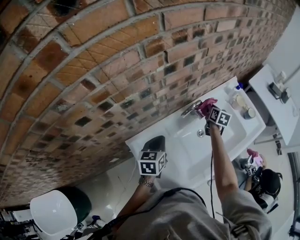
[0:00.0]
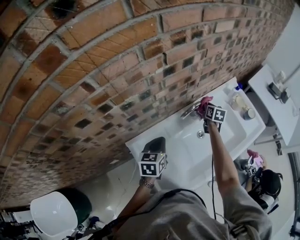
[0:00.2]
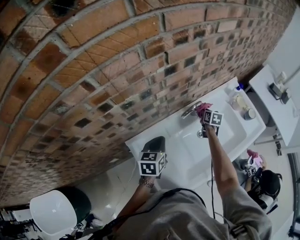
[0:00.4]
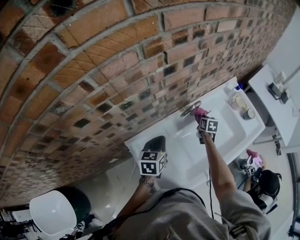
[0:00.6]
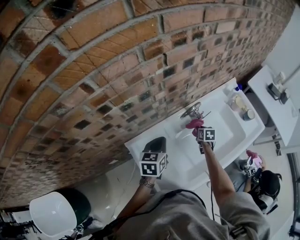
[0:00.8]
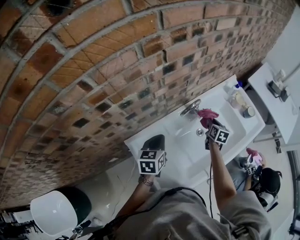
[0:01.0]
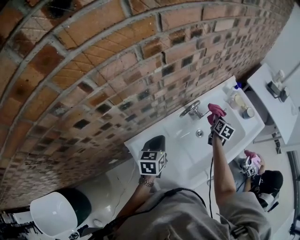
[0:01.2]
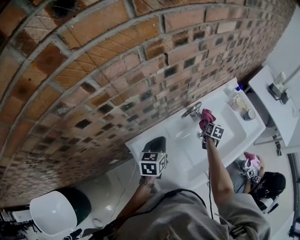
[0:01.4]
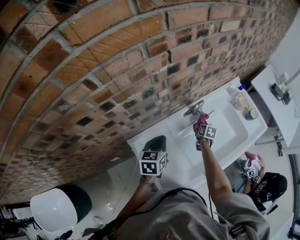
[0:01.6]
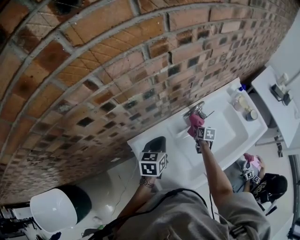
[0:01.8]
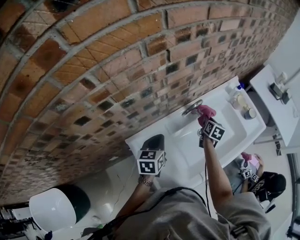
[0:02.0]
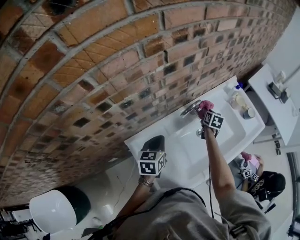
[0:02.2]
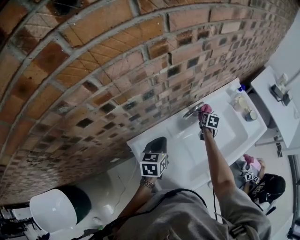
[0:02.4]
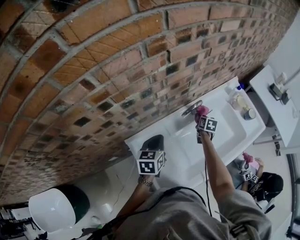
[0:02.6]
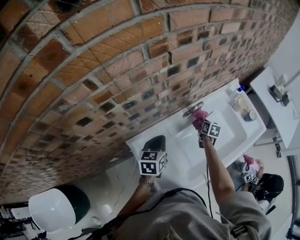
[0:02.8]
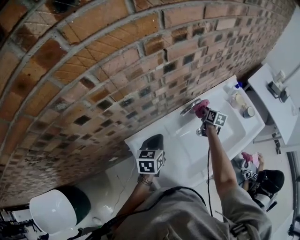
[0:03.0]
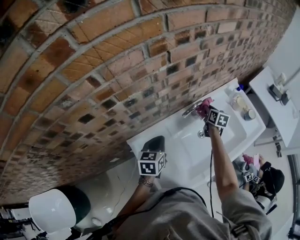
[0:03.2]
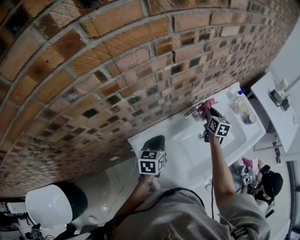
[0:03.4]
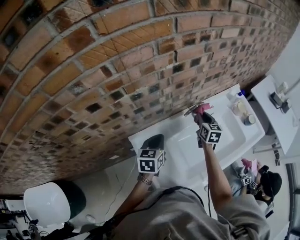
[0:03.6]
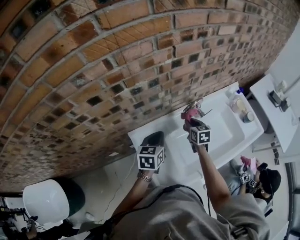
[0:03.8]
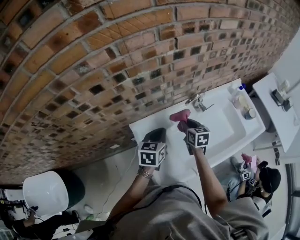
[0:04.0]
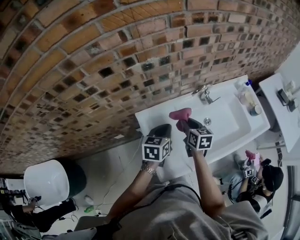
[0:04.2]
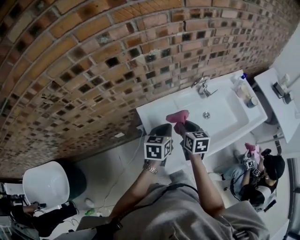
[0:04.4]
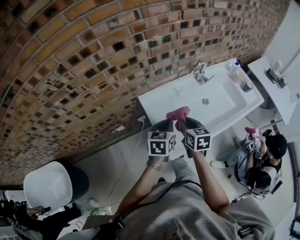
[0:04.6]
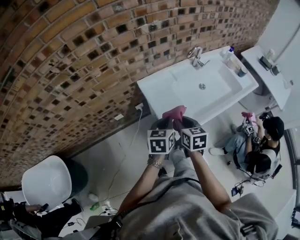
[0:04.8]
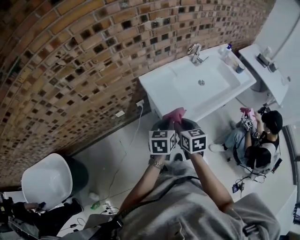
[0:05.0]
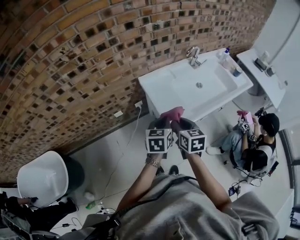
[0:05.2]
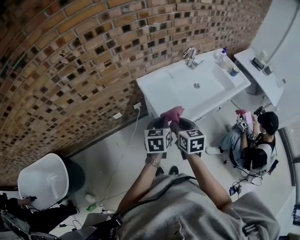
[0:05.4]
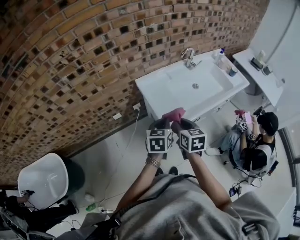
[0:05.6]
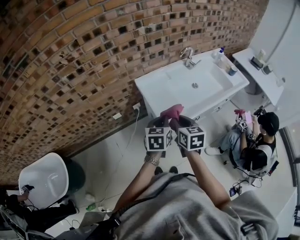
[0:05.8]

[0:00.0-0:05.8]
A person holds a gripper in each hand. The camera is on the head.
0:00.0 to 0:01.4: The right gripper goes up and down, approximately 10 cm each way, reversing 2 times.
0:01.4 to 0:02.8: The right gripper goes up and down, some 10 cm each way, reversing 2 times.
0:02.8 to 0:04.4: The left gripper travels backward by approximately 15 cm. The right gripper moves backward, to the left and upward, approximately 35 cm, and rotates about 30 degrees.
0:04.4 to 0:05.8: The grippers both shift backward by approximately 25 cm.

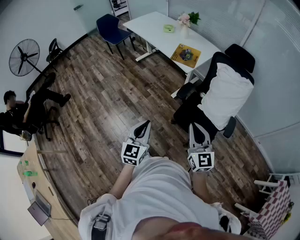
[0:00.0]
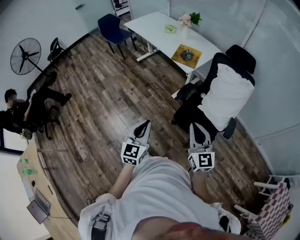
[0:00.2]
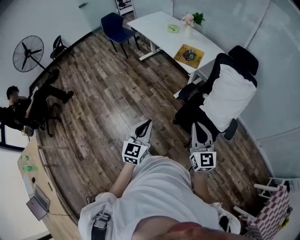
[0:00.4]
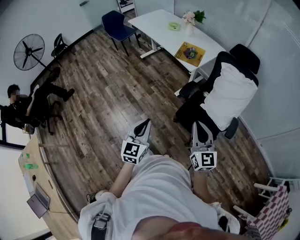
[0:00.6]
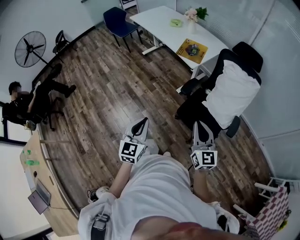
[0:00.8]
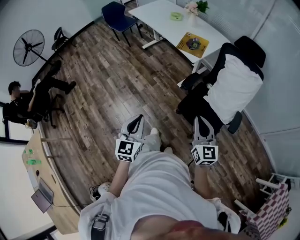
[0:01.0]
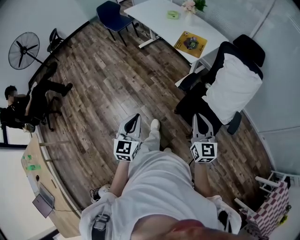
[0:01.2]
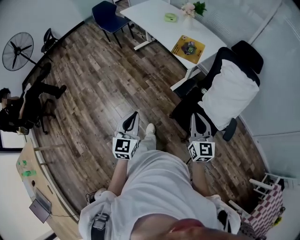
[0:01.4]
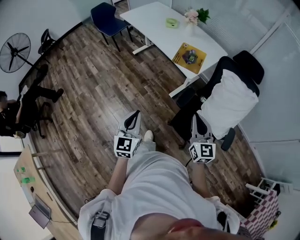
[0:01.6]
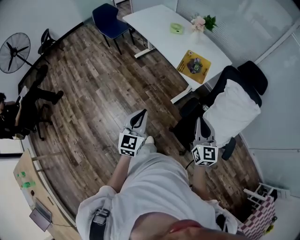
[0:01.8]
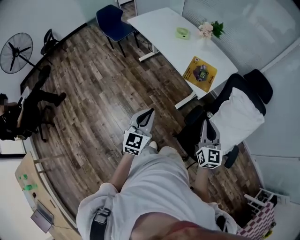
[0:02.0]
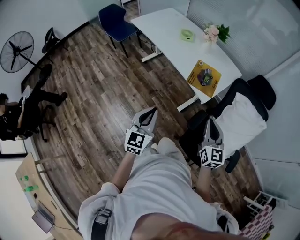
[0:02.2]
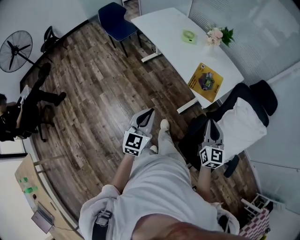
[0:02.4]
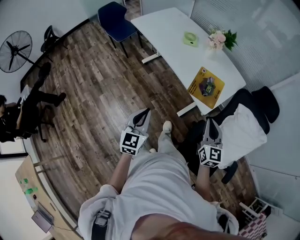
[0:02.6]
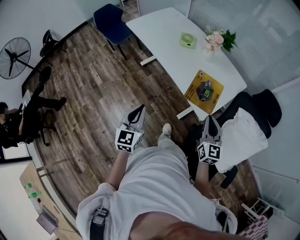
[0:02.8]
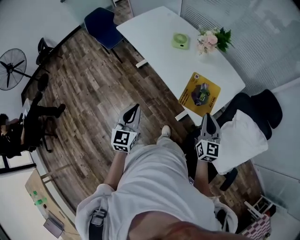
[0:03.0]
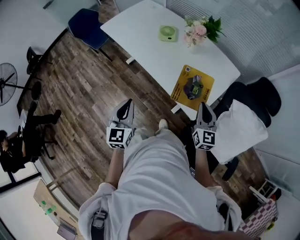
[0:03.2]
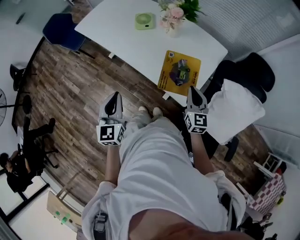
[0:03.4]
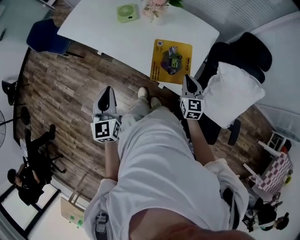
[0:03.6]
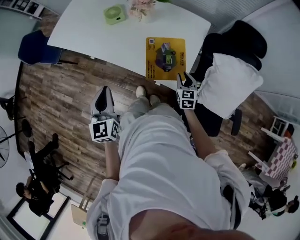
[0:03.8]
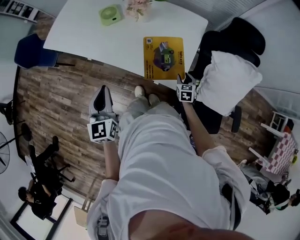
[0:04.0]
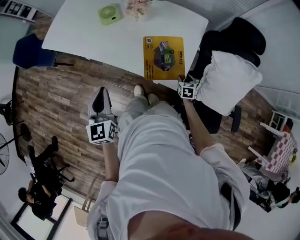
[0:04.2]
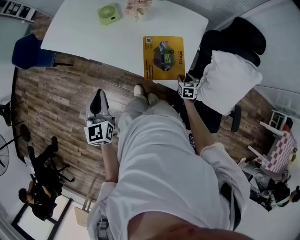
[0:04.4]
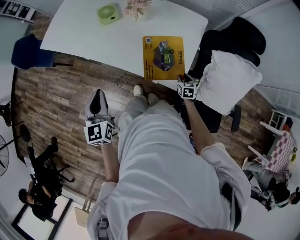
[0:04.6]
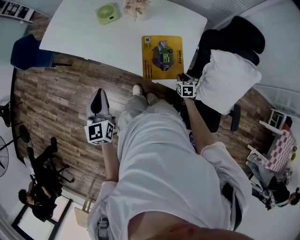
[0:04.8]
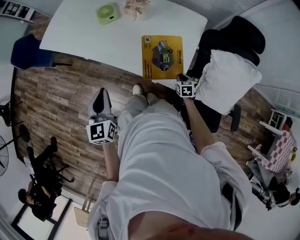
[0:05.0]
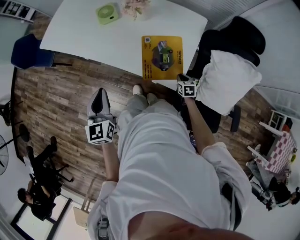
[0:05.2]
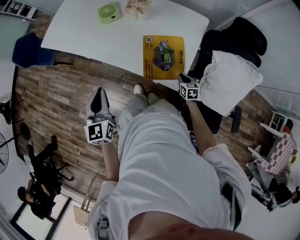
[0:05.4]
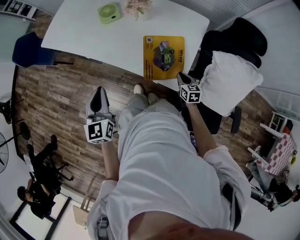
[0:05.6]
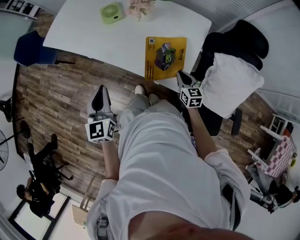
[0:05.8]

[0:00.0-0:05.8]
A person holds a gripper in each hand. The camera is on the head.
0:00.0 to 0:01.4: The two grippers go approximately 10 cm forward.
0:01.4 to 0:02.8: Both grippers are carried forward, some 40 cm.
0:02.8 to 0:04.4: The left gripper moves forward, roughly 20 cm. The right gripper travels downward by about 35 cm, points its fingers roughly 40 degrees further downward, and opens.
0:04.4 to 0:05.8: The right gripper goes approximately 15 cm upward and to the left, swivels about 20 degrees, and closes its fingers.

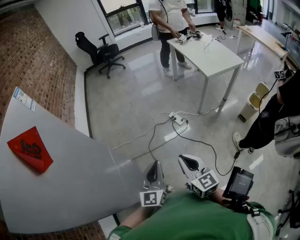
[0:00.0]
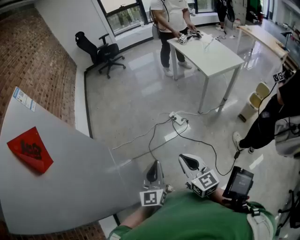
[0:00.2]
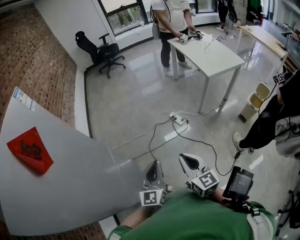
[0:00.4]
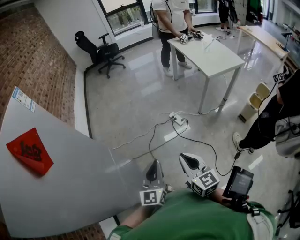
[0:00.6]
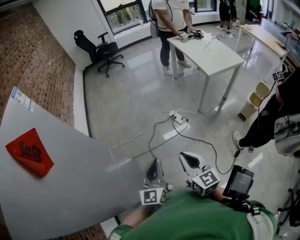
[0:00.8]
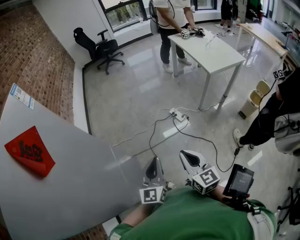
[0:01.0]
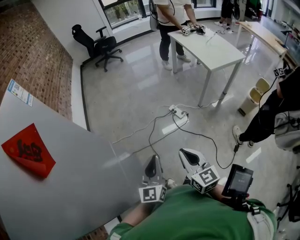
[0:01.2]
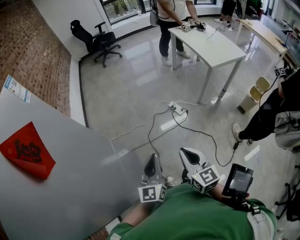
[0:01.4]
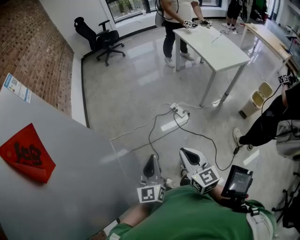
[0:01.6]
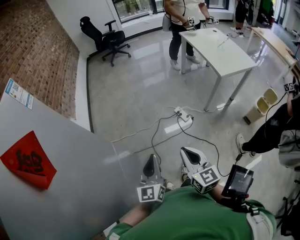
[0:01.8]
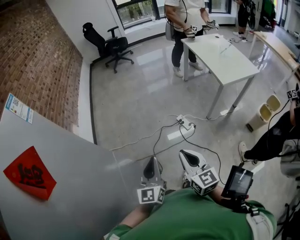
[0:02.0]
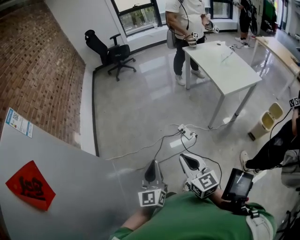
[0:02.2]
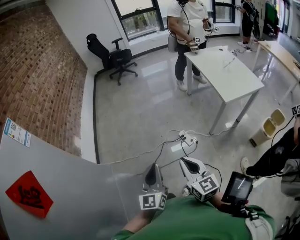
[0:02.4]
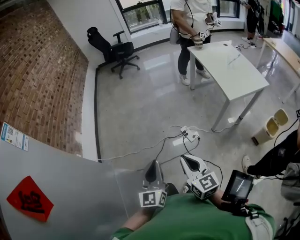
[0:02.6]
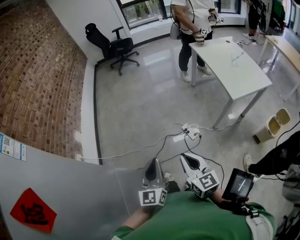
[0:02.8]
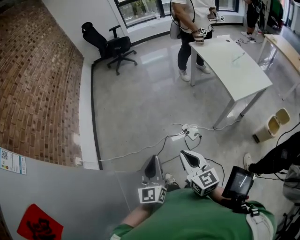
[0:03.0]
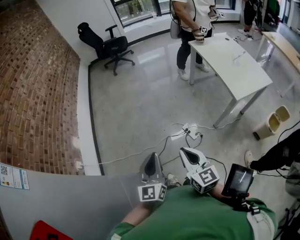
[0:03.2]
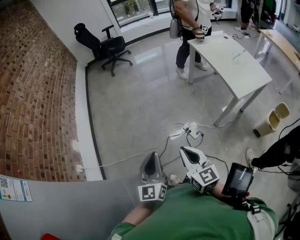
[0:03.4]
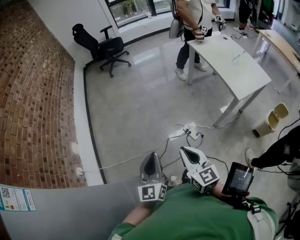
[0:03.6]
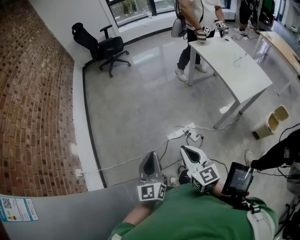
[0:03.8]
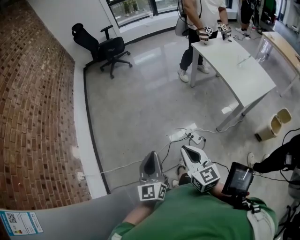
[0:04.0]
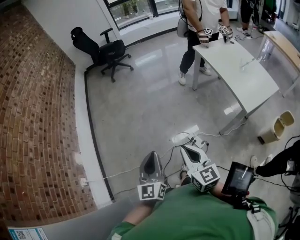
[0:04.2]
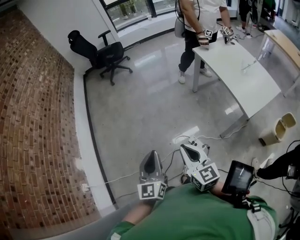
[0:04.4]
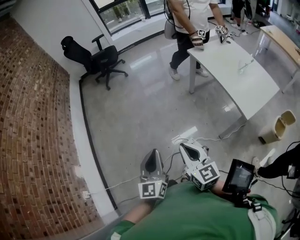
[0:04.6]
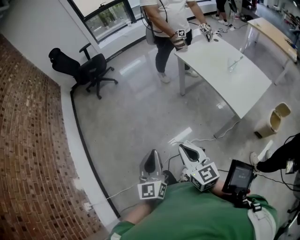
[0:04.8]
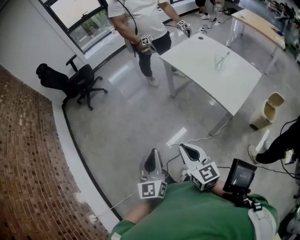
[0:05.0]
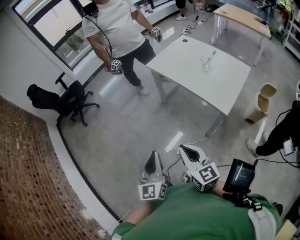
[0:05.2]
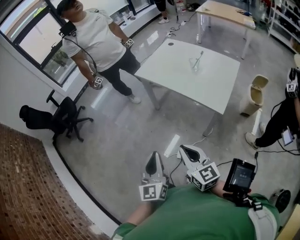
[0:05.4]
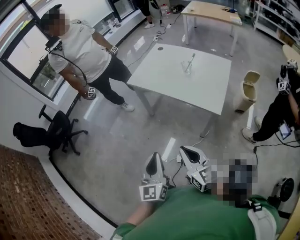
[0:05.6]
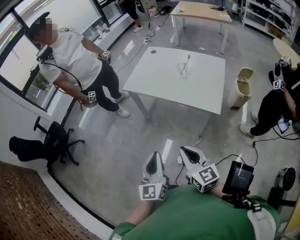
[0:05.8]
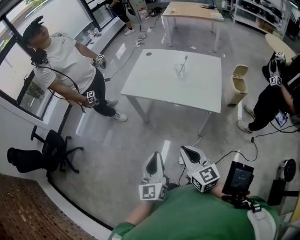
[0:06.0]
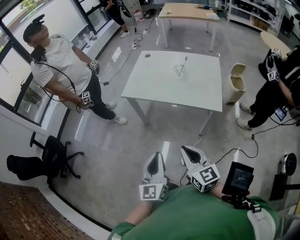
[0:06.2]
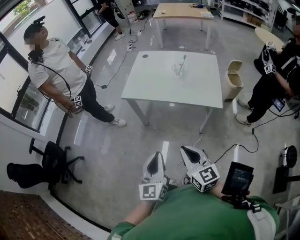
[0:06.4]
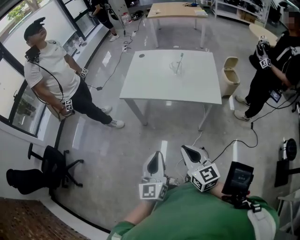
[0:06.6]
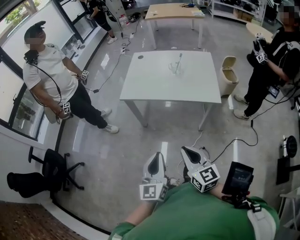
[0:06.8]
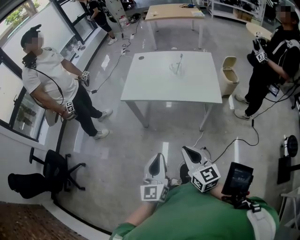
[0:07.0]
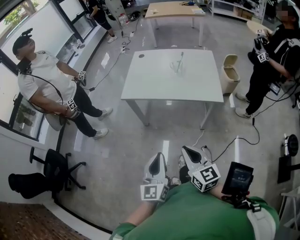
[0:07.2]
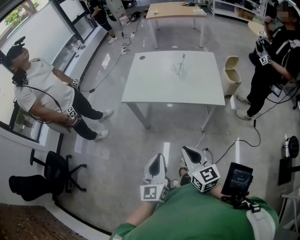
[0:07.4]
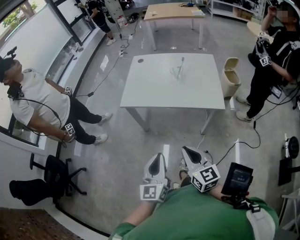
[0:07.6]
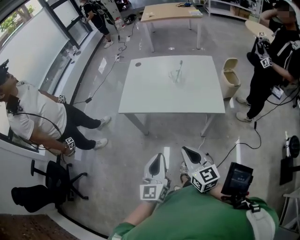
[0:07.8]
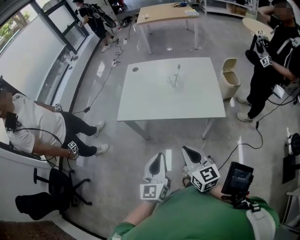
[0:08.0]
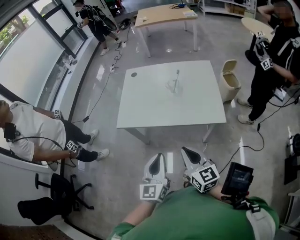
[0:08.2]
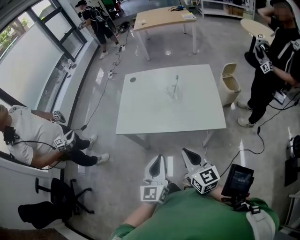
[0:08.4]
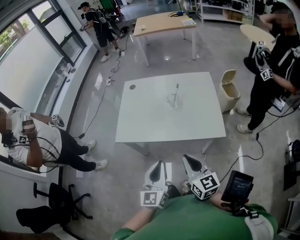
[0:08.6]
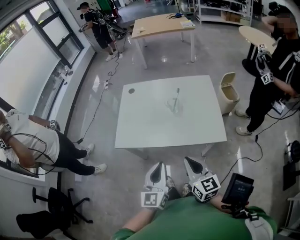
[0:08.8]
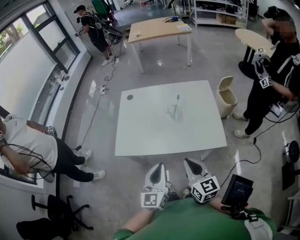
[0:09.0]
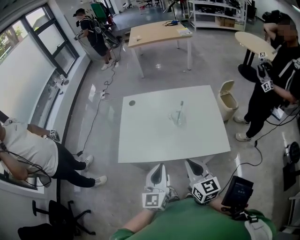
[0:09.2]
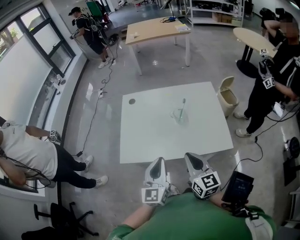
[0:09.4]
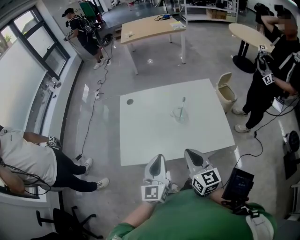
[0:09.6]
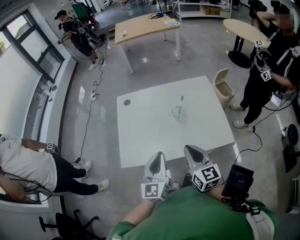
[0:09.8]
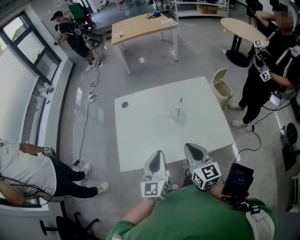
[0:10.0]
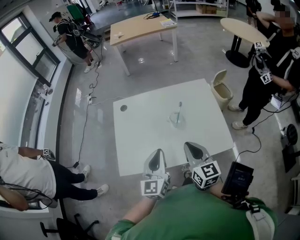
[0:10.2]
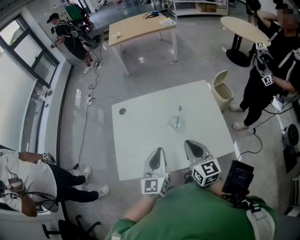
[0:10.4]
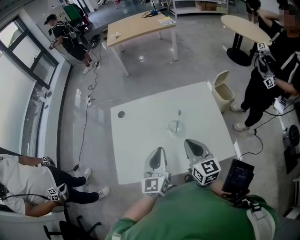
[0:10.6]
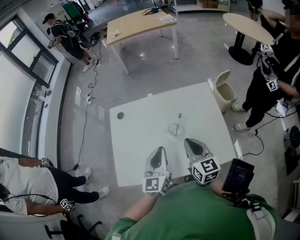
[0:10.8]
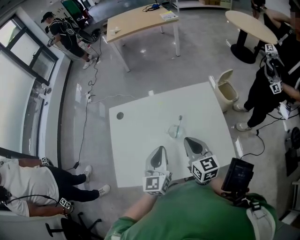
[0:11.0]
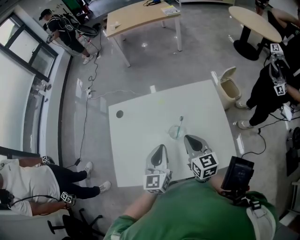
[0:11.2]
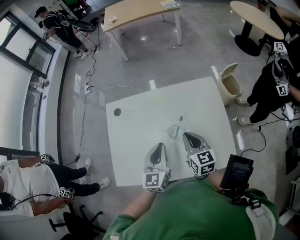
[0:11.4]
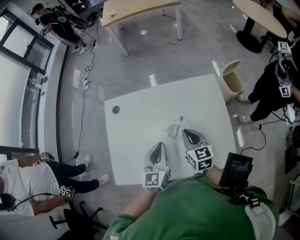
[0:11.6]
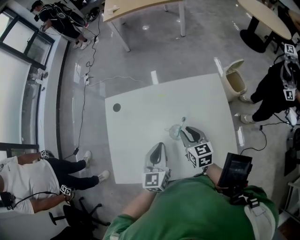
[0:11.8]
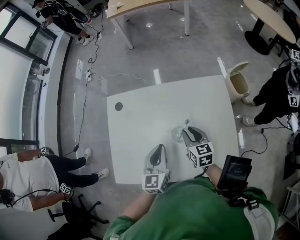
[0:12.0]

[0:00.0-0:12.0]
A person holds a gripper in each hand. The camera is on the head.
0:00.0 to 0:01.6: The left gripper travels to the left by some 5 cm. The right gripper ends up about 5 cm from where it was.
0:01.6 to 0:03.0: Both grippers move forward, approximately 25 cm.
0:03.0 to 0:04.4: Both grippers travel together forward, roughly 25 cm.
0:04.4 to 0:06.0: The left gripper moves approximately 35 cm, and changes its angle by some 50 degrees, while the right gripper changes place by roughly 25 cm, and changes its angle by roughly 50 degrees.
0:06.0 to 0:07.6: The left gripper moves to the left and forward, roughly 10 cm; the right gripper shifts some 5 cm to the left.
0:07.6 to 0:09.0: Both grippers travel together forward, approximately 25 cm.
0:09.0 to 0:10.4: Both grippers travel together forward, some 20 cm.
0:10.4 to 0:12.0: The two grippers go approximately 20 cm forward and downward. The right gripper changes its angle by about 20 degrees, and opens.
